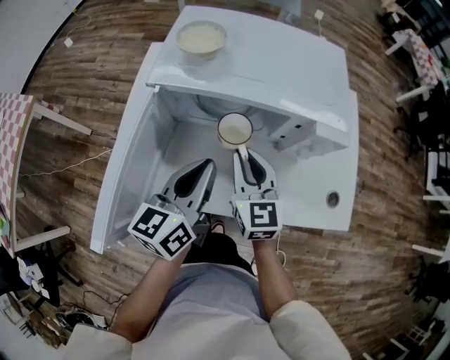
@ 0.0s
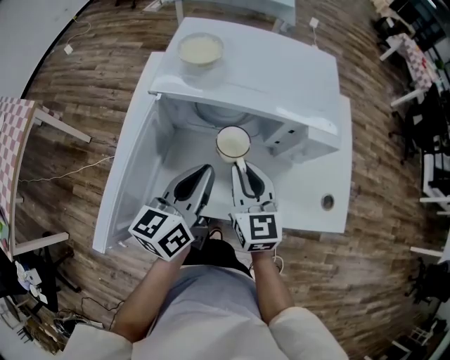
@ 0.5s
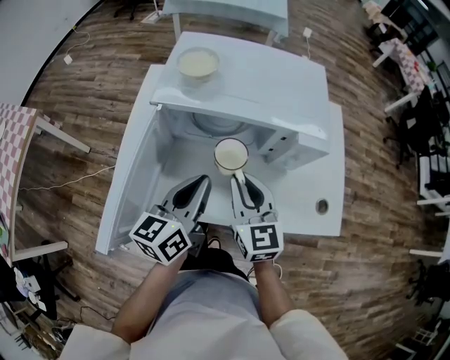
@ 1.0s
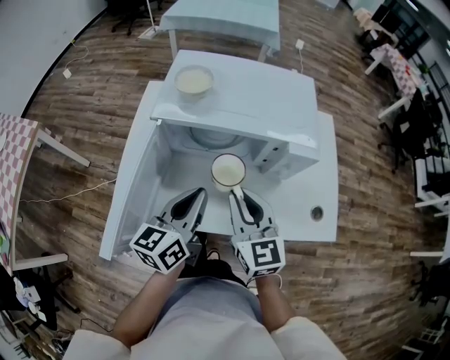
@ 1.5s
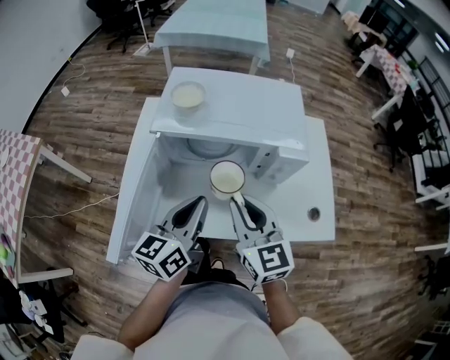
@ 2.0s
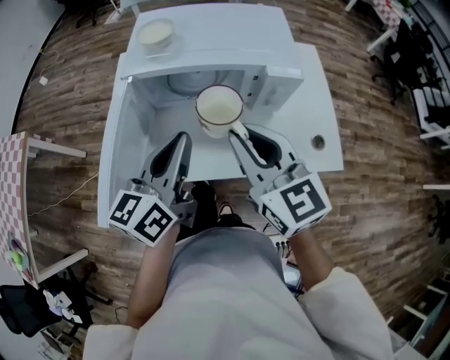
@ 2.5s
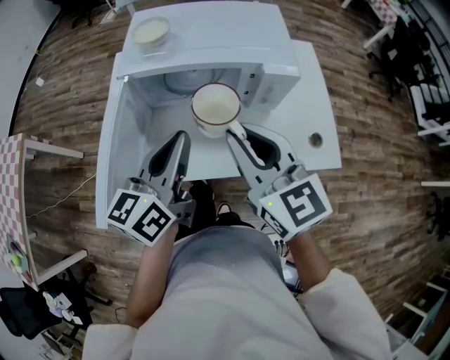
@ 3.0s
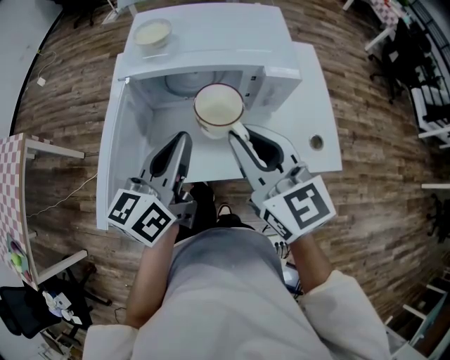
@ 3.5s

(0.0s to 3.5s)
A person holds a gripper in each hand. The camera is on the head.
0.0s - 2.0s: The right gripper travels upward and backward by approximately 15 cm. Meanwhile the left gripper is displaced upward by about 5 cm.
2.0s - 3.5s: The right gripper shifts roughly 5 cm upward.

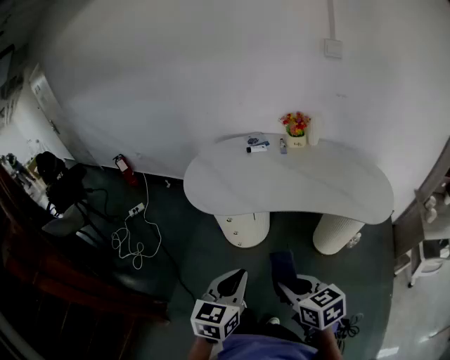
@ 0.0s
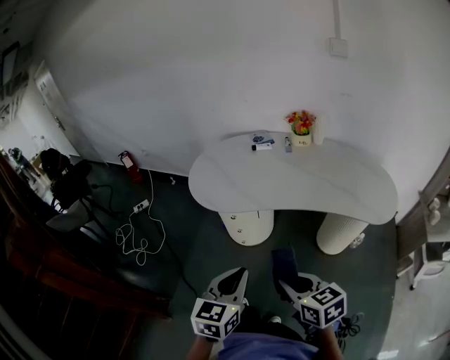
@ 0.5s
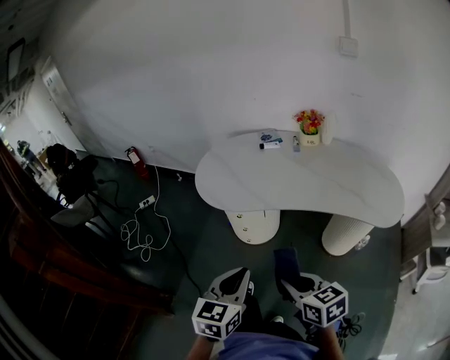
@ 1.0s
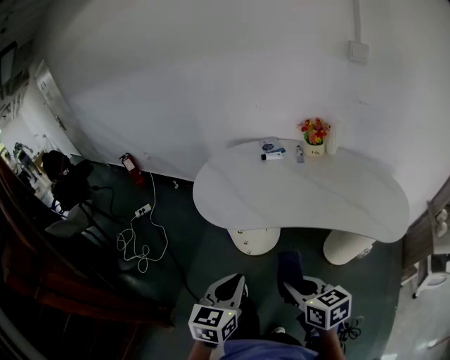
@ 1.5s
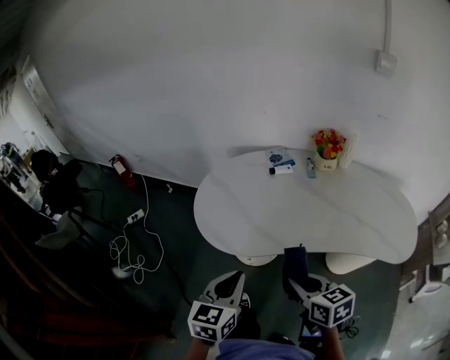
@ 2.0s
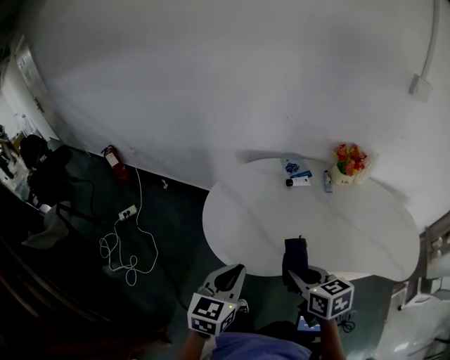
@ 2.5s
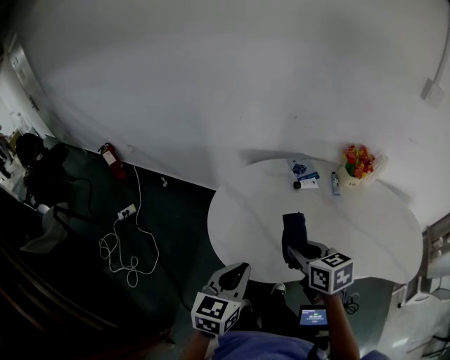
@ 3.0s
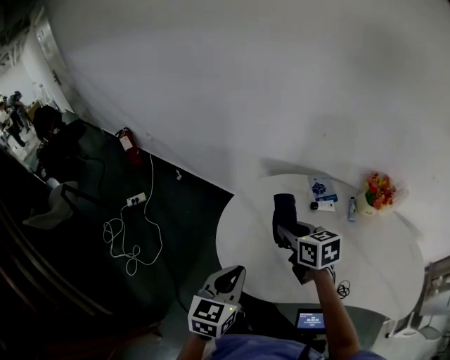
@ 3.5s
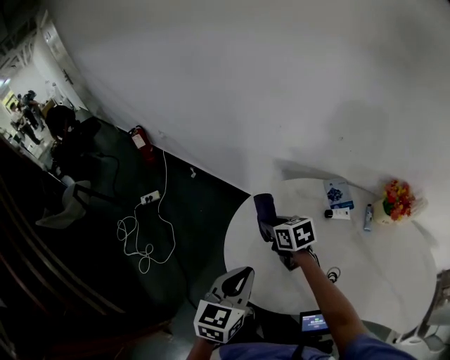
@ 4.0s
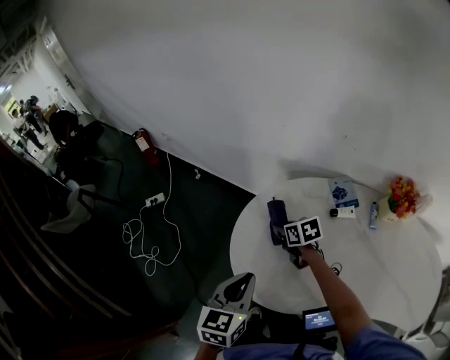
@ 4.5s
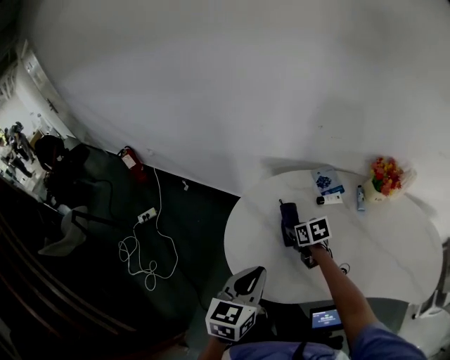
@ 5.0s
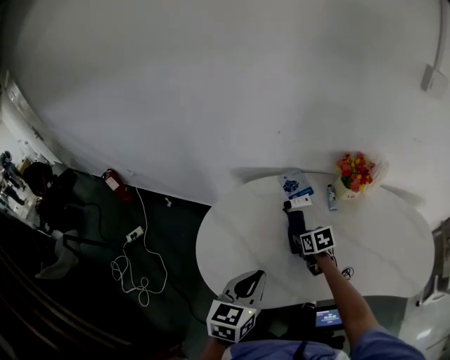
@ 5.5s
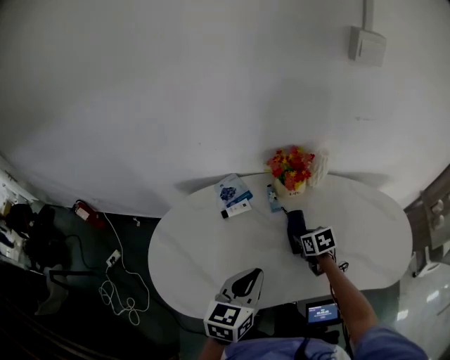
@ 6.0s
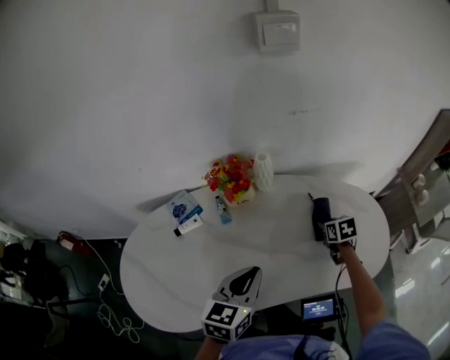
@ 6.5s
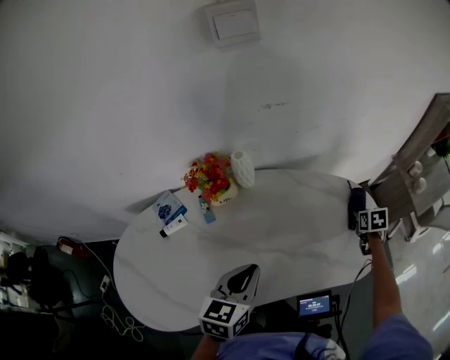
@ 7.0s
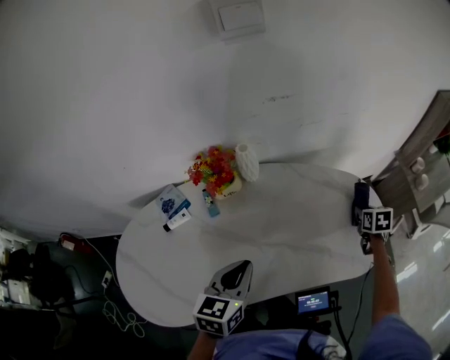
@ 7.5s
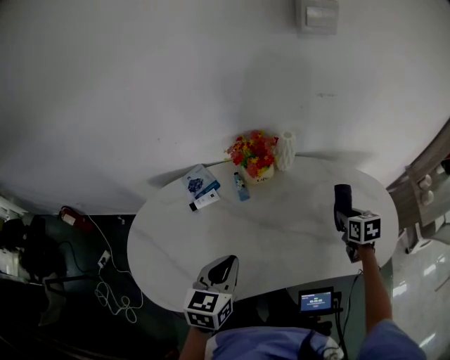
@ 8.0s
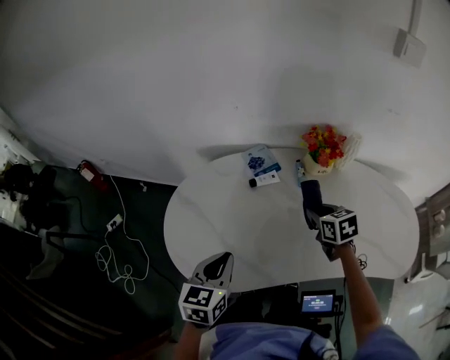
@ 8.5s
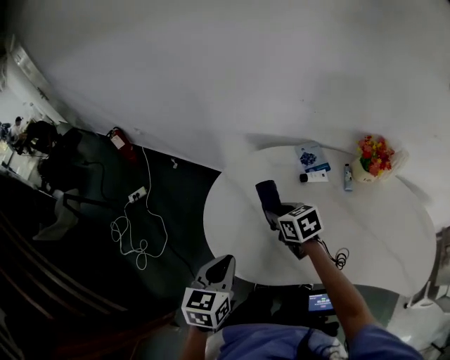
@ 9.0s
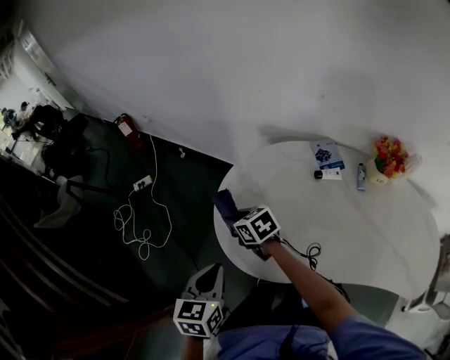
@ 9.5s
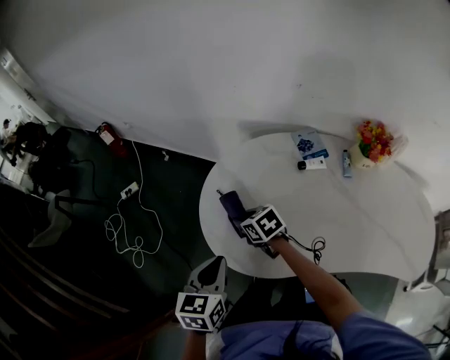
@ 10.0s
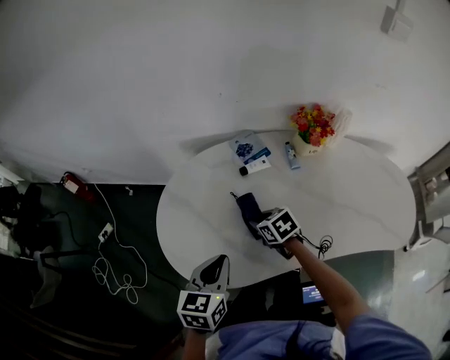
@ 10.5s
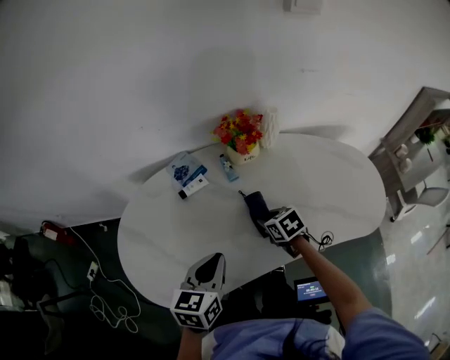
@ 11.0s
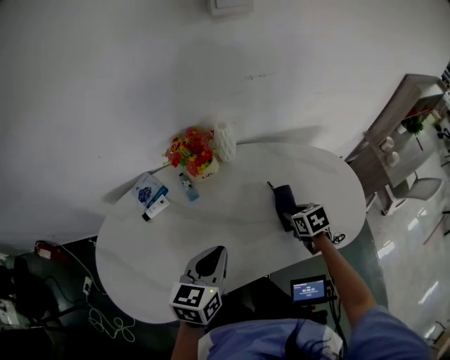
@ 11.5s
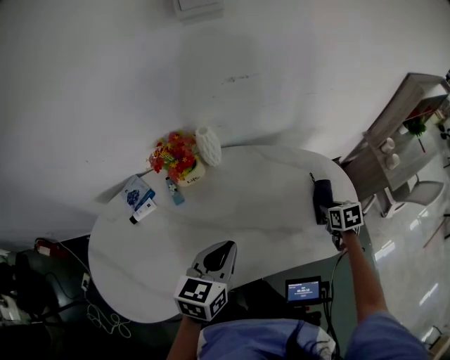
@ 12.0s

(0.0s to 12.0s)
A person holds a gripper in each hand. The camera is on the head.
0.0s - 2.0s: Both grippers move forward, approximately 25 cm.
2.0s - 4.0s: The left gripper shifts roughly 25 cm forward; the right gripper heads forward and to the left, covering some 50 cm, and turns by approximately 20 degrees.
4.0s - 6.0s: The left gripper shifts by roughly 35 cm, and swivels approximately 30 degrees, while the right gripper ends up about 50 cm from where it was, and turns by roughly 30 degrees.
6.0s - 8.0s: The right gripper rotates some 20 degrees.
8.0s - 10.0s: The right gripper changes place by some 70 cm, and changes its angle by roughly 60 degrees, while the left gripper moves about 40 cm, and changes its angle by approximately 30 degrees.
10.0s - 12.0s: Both grippers are carried approximately 70 cm. The left gripper changes its angle by roughly 50 degrees. Meanwhile the right gripper turns by approximately 70 degrees.

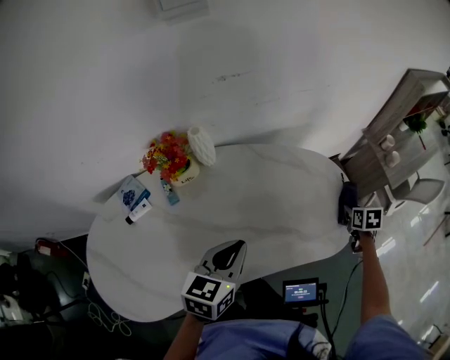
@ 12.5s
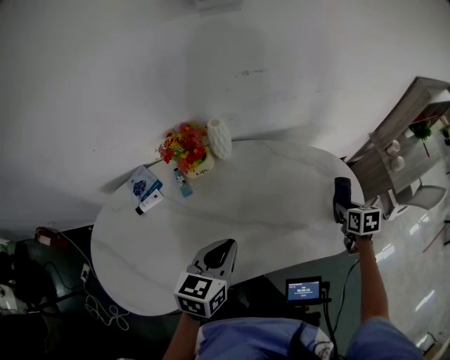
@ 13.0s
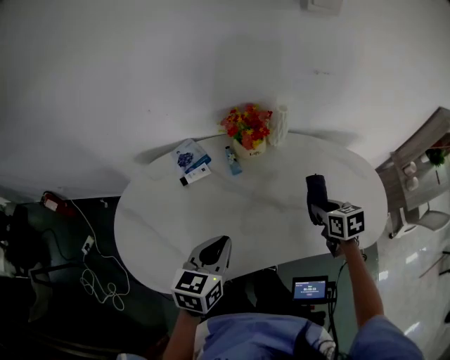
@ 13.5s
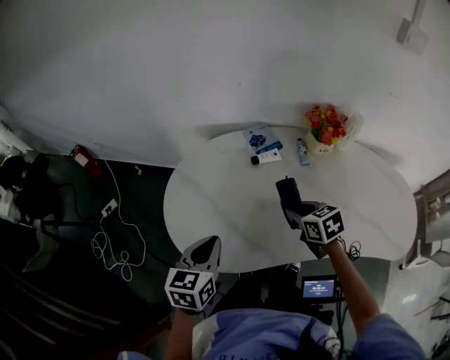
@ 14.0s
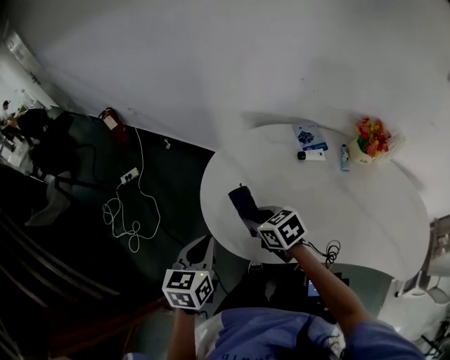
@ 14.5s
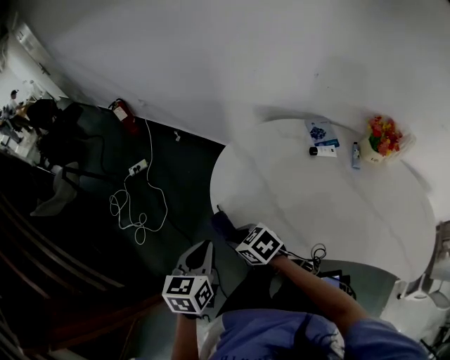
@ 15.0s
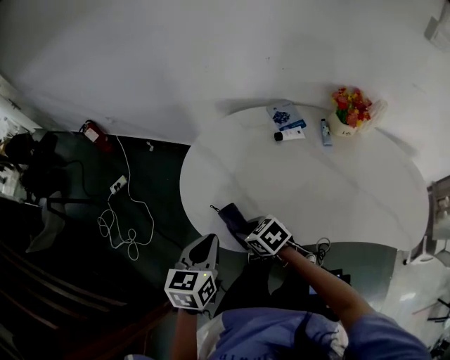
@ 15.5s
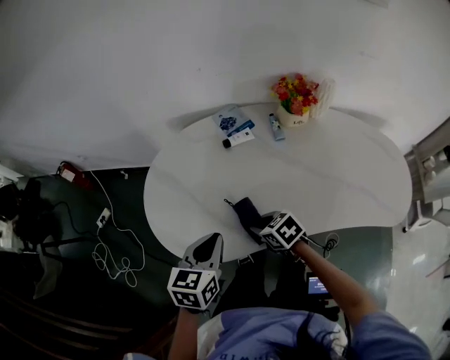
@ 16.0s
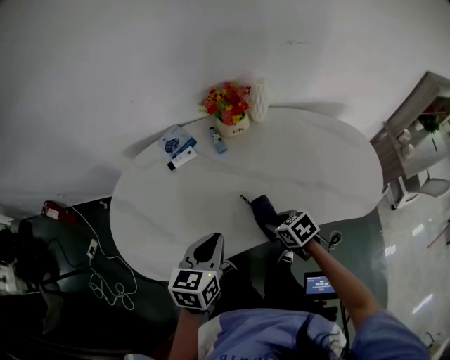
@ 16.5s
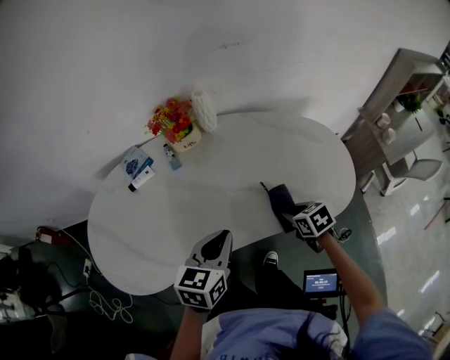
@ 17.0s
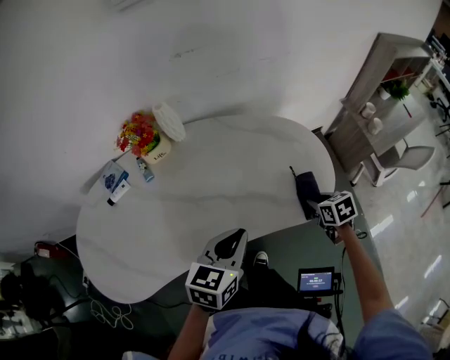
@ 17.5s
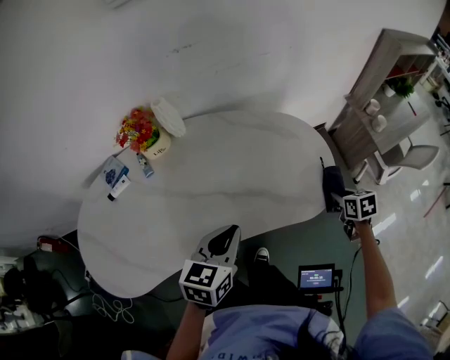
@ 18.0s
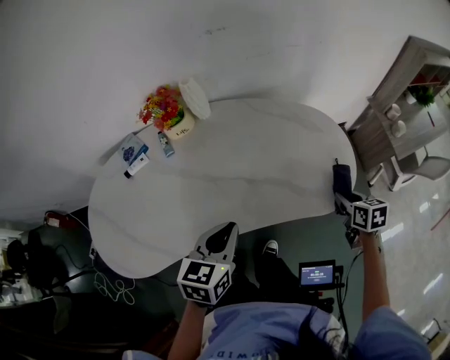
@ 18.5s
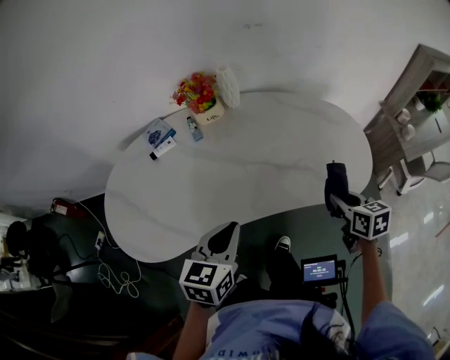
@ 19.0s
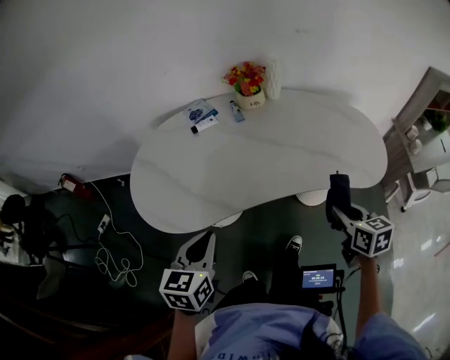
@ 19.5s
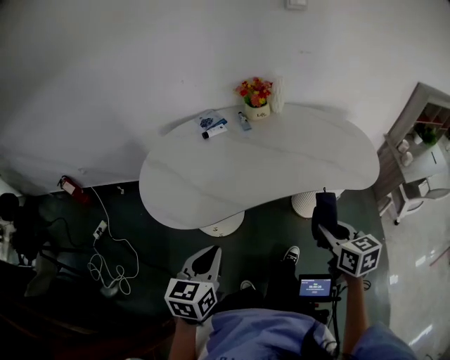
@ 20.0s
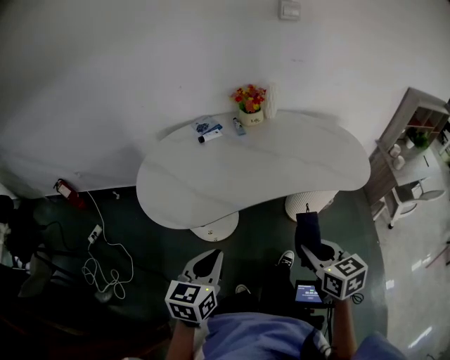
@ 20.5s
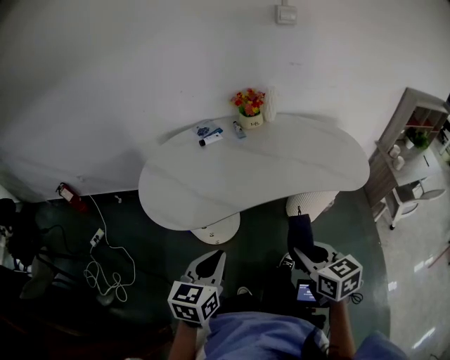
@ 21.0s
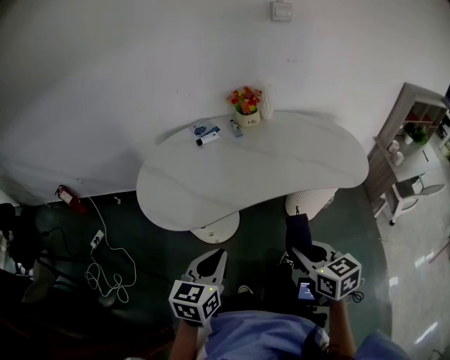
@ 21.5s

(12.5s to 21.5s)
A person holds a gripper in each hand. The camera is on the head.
12.5s - 14.5s: Both grippers are carried some 80 cm. The left gripper rotates some 50 degrees. Meanwhile the right gripper changes its angle by roughly 80 degrees.
14.5s - 17.0s: The two grippers travel together, approximately 60 cm. The left gripper turns by approximately 50 degrees. Meanwhile the right gripper swivels approximately 50 degrees.
17.0s - 19.5s: The right gripper travels backward and upward by about 20 cm, reaches about 30 cm to the right, then returns, and turns by about 20 degrees, while the left gripper goes some 30 cm backward and to the left.
19.5s - 21.5s: The right gripper shifts about 20 cm to the left and backward. Meanwhile the left gripper heads backward, covering approximately 10 cm.

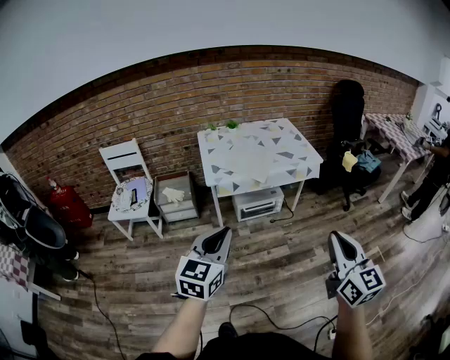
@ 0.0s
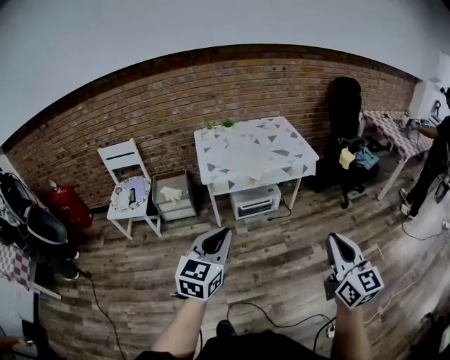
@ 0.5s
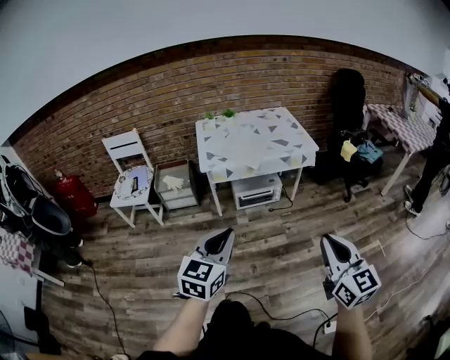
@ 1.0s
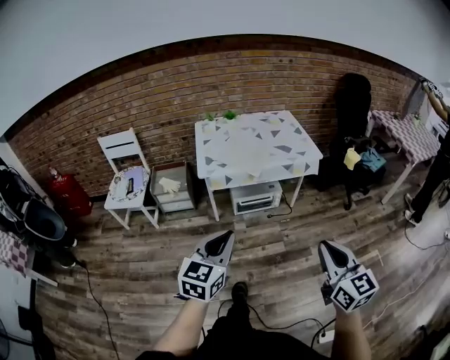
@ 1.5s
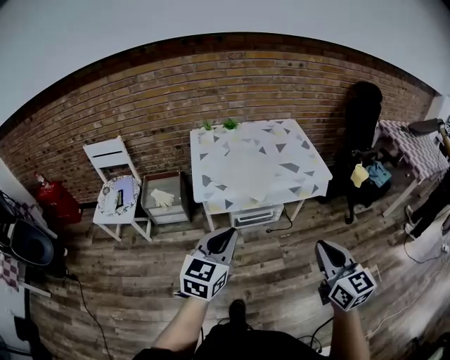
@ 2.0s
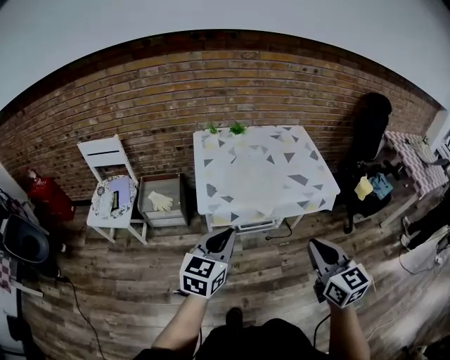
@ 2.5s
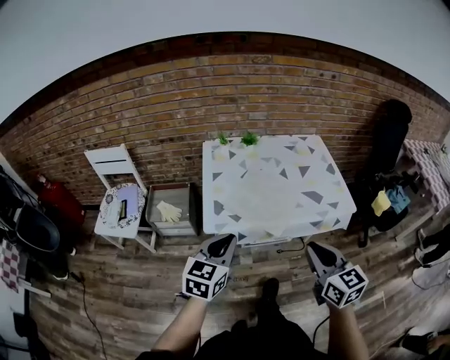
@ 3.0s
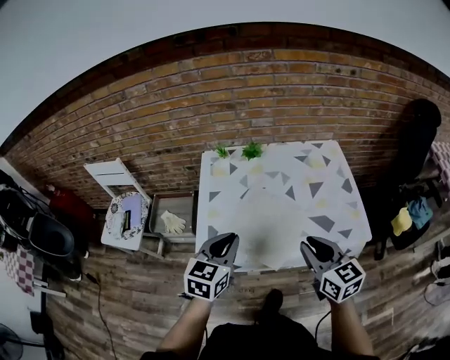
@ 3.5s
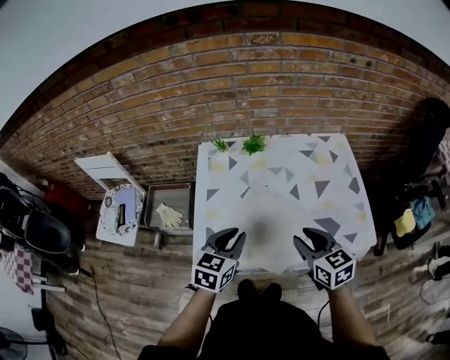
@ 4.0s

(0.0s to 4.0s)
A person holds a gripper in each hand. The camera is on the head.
0.0s - 2.0s: The grippers both shift forward by roughly 20 cm.
2.0s - 4.0s: The grippers both shift forward by some 40 cm. The right gripper turns by roughly 30 degrees, and opens its fingers.
